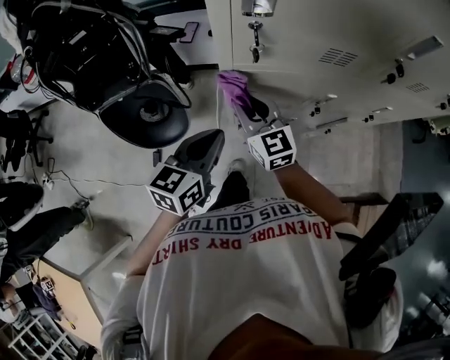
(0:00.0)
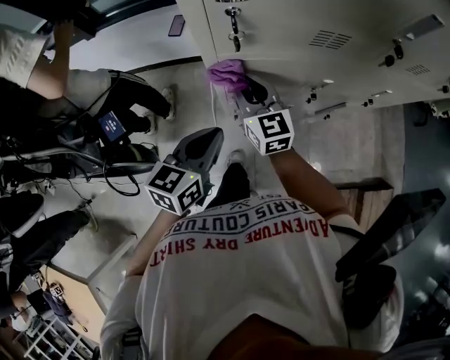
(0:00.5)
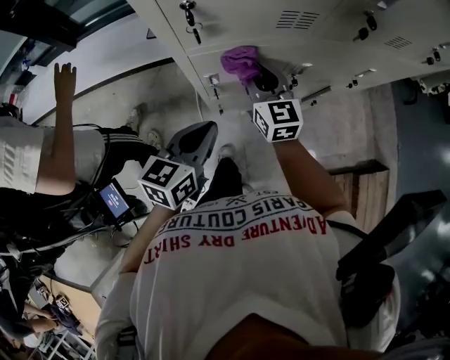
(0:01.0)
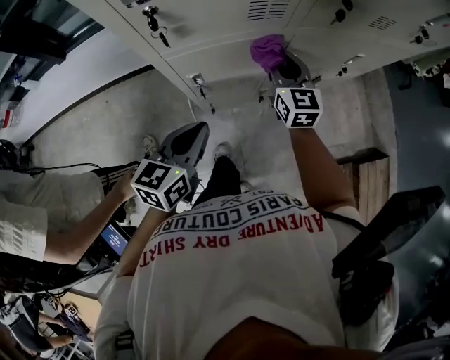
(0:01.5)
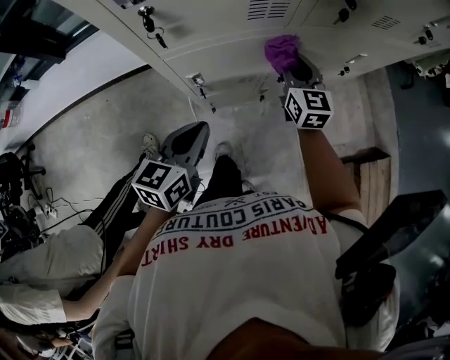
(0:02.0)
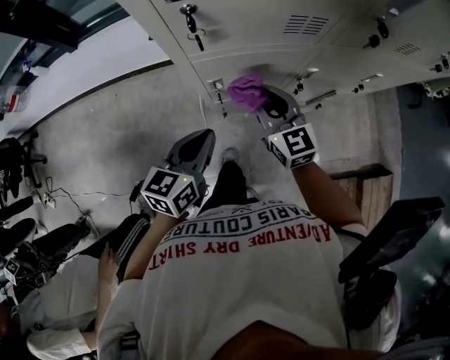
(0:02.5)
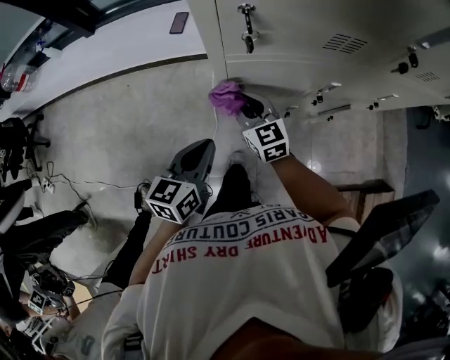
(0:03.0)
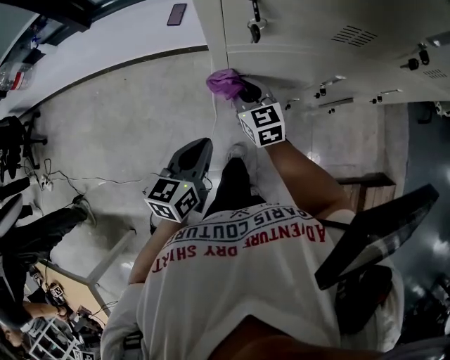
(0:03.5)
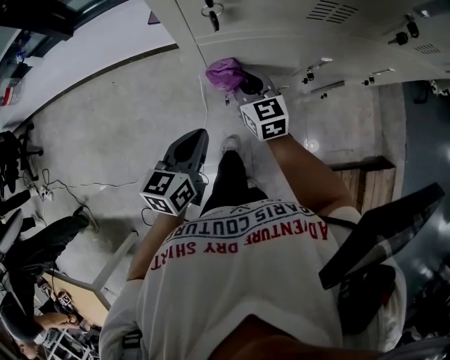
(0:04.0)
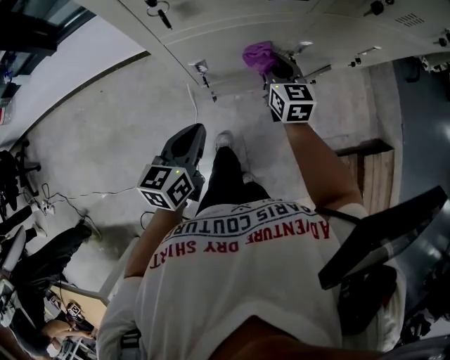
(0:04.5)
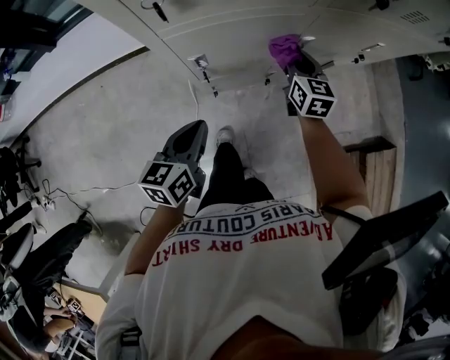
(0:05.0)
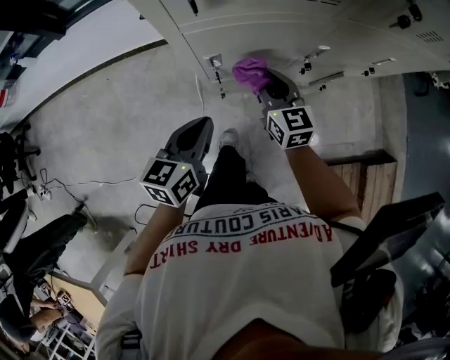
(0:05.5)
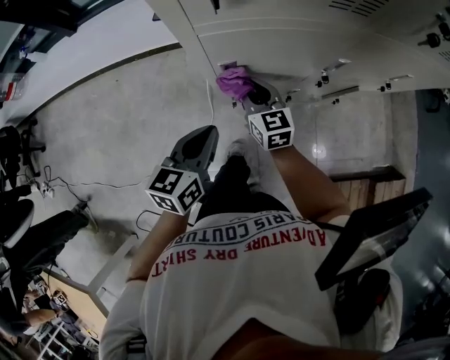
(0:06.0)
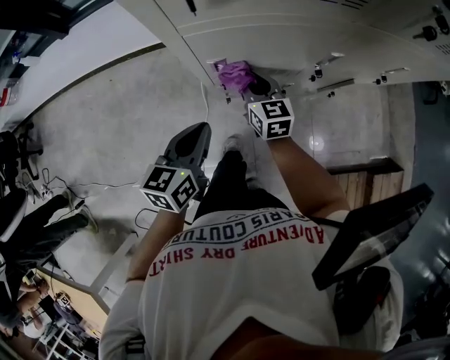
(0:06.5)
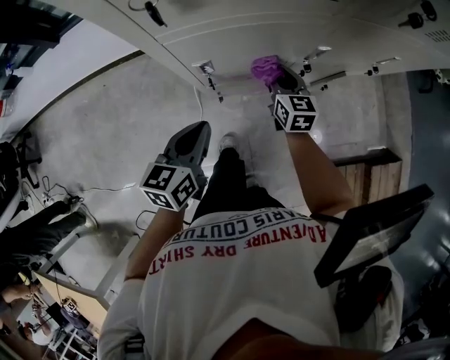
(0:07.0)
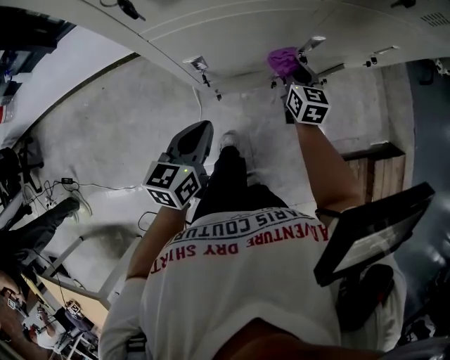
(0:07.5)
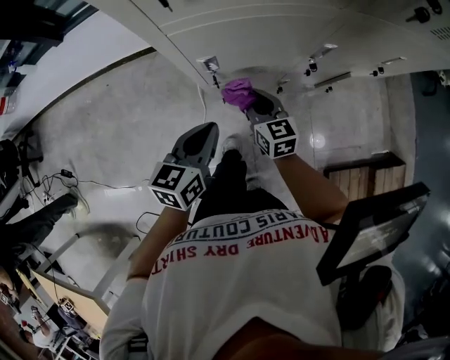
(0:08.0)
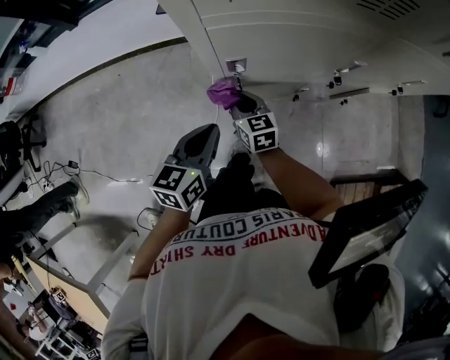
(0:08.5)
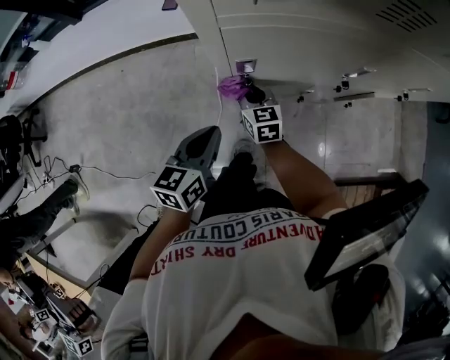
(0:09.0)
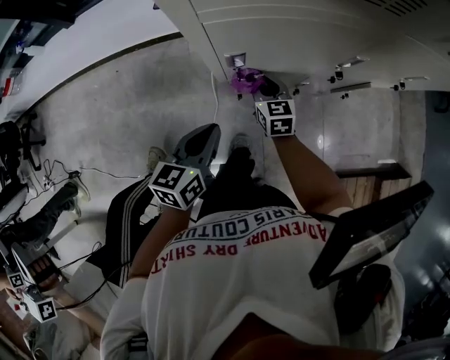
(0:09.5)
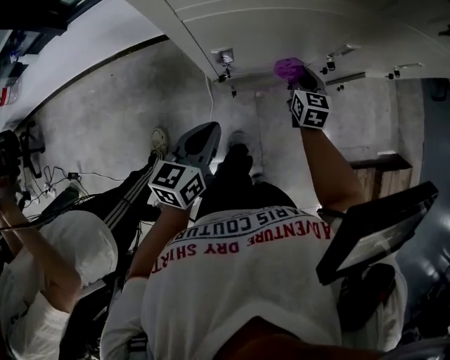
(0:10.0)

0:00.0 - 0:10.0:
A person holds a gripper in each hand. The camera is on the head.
0:00.0 - 0:02.0: The left gripper goes some 10 cm to the right and downward; the right gripper goes about 25 cm to the right, and swivels some 30 degrees.
0:02.0 - 0:04.0: The right gripper travels to the left and downward by about 25 cm, and rotates roughly 20 degrees. The left gripper is displaced to the left and downward by some 10 cm.
0:04.0 - 0:06.0: The right gripper travels downward by about 10 cm, and travels to the right and back again, about 20 cm each way. Meanwhile the left gripper changes place by approximately 5 cm.
0:06.0 - 0:08.0: The right gripper moves roughly 20 cm to the right and comes back.
0:08.0 - 0:10.0: The right gripper is displaced to the right, forward and downward by some 15 cm, and changes its angle by roughly 20 degrees.

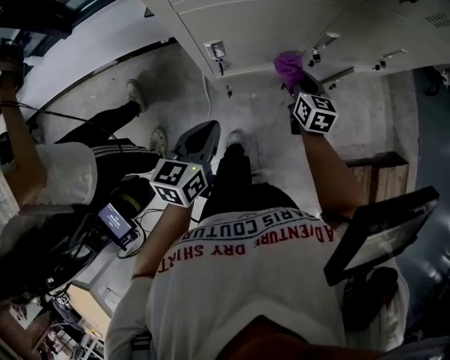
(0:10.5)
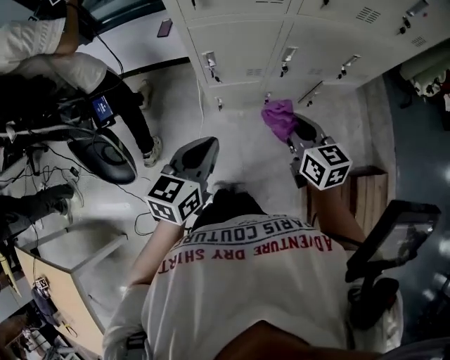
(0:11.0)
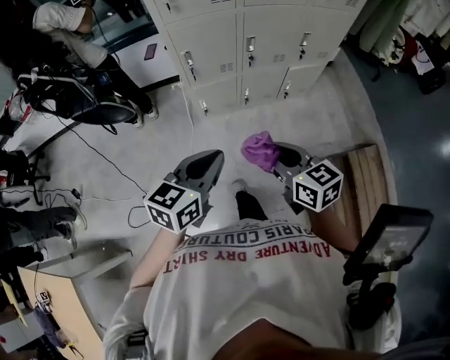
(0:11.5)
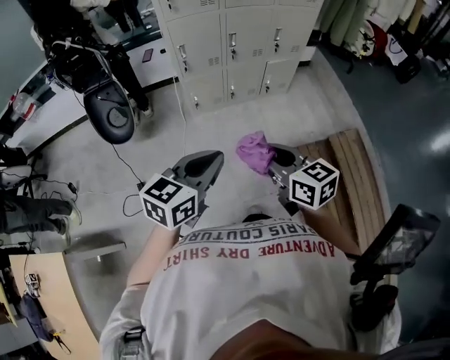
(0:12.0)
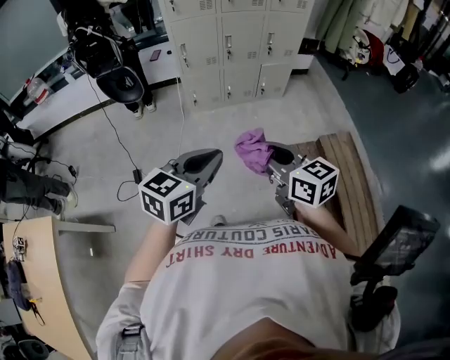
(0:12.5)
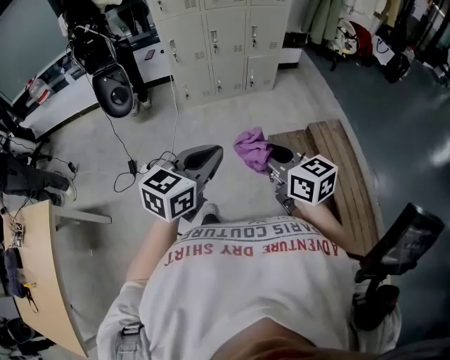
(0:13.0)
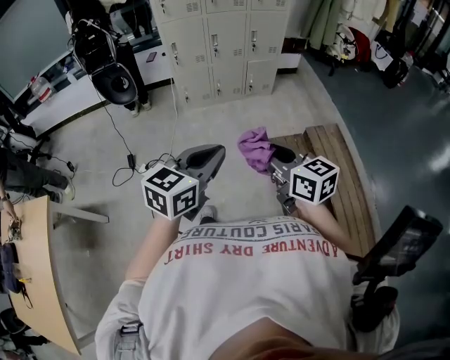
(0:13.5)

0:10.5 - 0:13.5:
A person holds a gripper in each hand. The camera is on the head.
0:10.5 - 0:12.0: The two grippers travel together, backward, approximately 60 cm. The two grippers go about 35 cm upward. The right gripper rotates roughly 30 degrees. The left gripper turns by about 20 degrees.
0:12.0 - 0:13.5: The two grippers go some 35 cm backward and to the right.

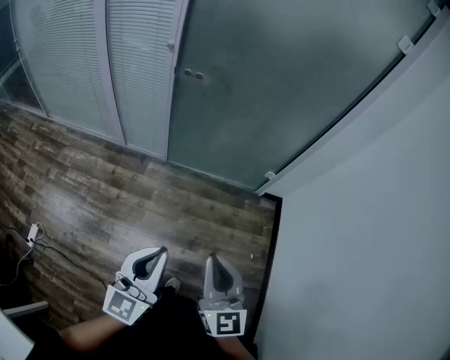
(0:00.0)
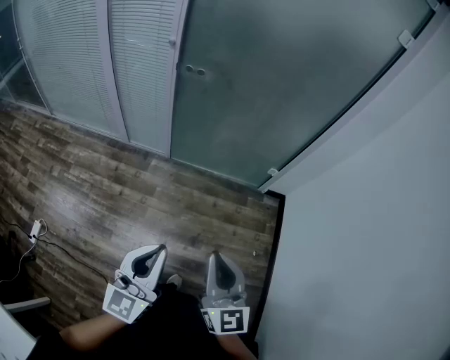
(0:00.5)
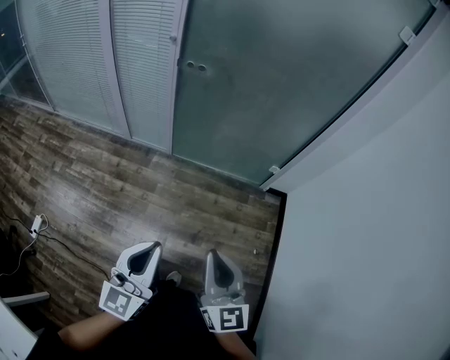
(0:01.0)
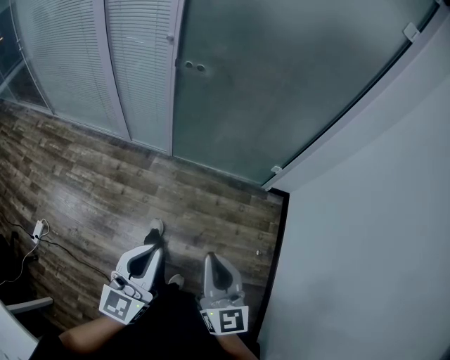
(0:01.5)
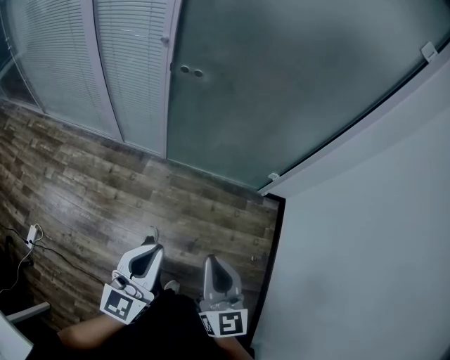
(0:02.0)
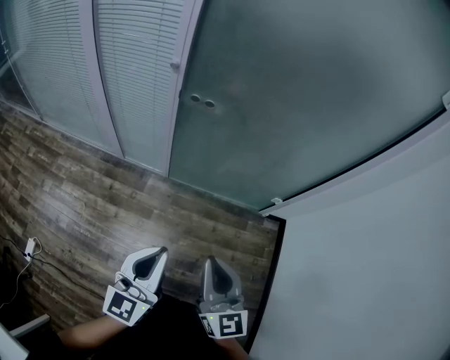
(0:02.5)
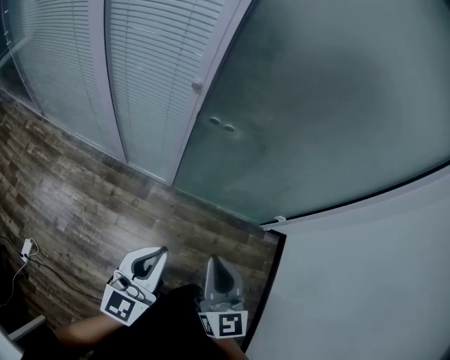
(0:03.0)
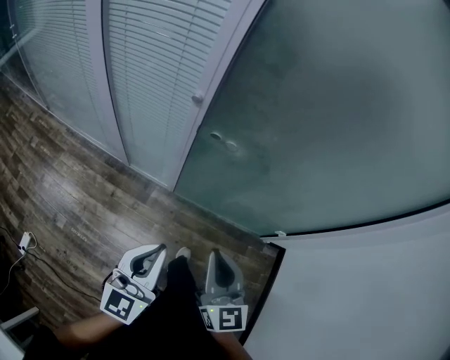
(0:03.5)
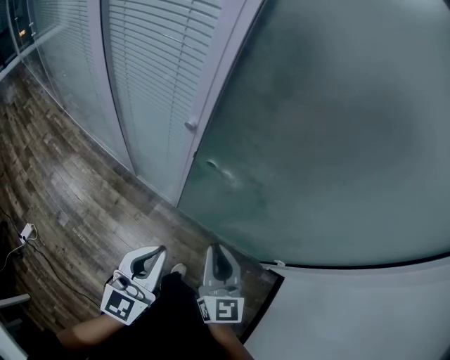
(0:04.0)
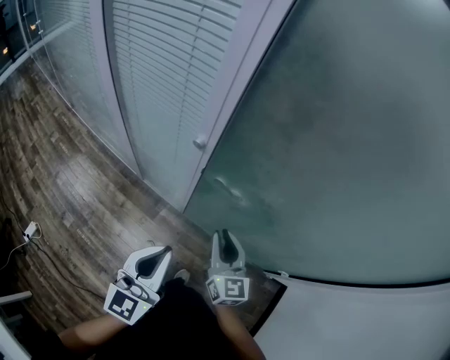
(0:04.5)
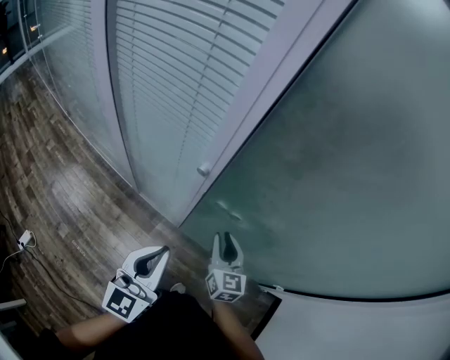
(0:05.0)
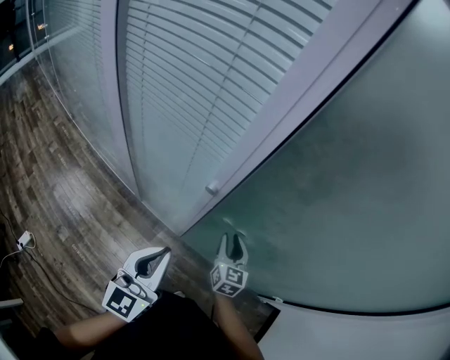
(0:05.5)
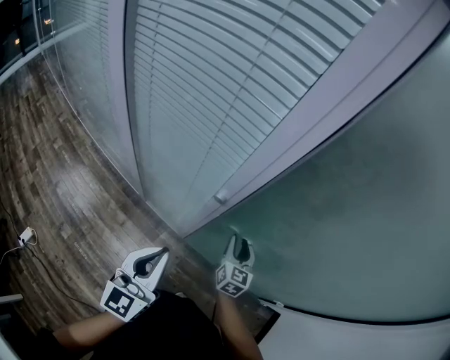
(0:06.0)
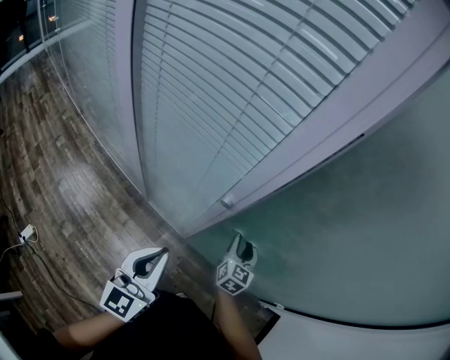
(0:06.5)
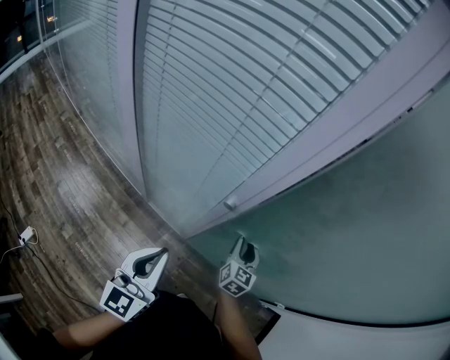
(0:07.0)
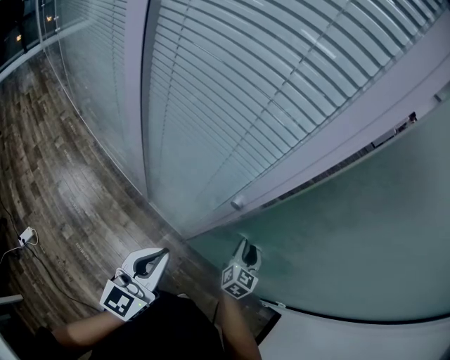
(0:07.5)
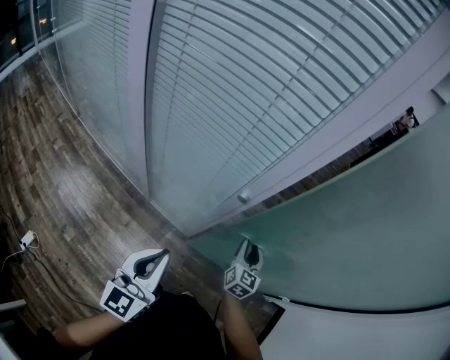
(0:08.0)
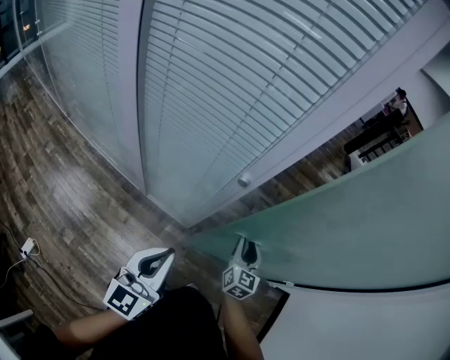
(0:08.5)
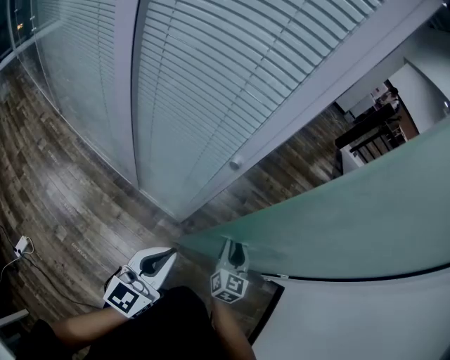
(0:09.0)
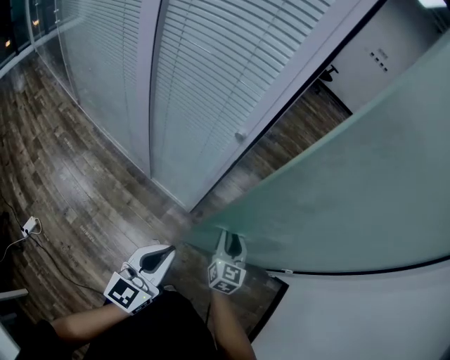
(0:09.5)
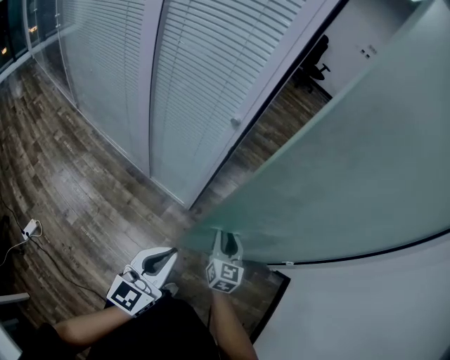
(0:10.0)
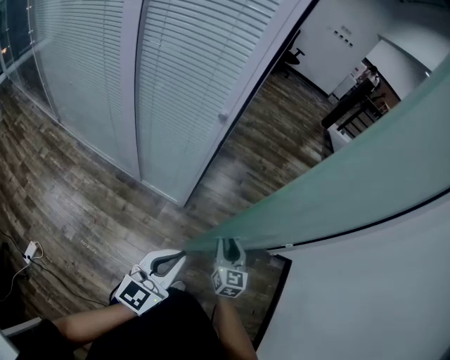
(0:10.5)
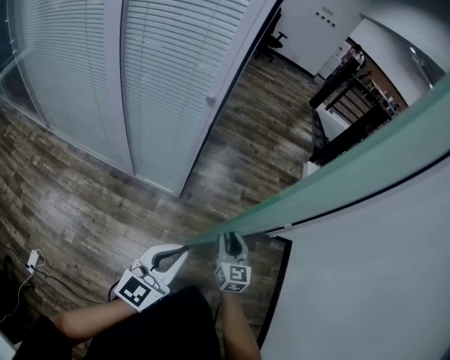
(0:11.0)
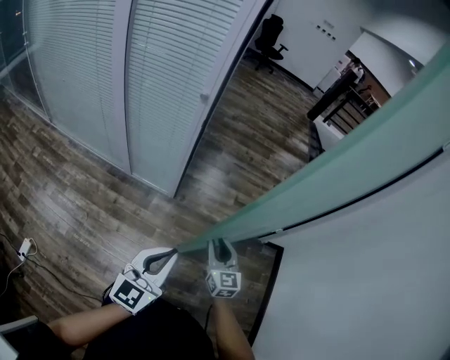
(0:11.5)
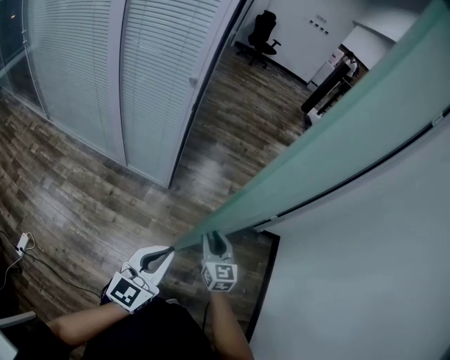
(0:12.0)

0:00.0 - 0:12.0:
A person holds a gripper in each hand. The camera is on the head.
0:00.0 - 0:02.0: Both grippers move forward, about 10 cm.
0:02.0 - 0:04.0: The grippers both shift forward by some 40 cm.
0:04.0 - 0:06.0: The right gripper heads forward and downward, covering some 30 cm, and opens up. The left gripper goes about 15 cm forward and to the left.
0:06.0 - 0:08.0: The left gripper moves roughly 5 cm.
0:08.0 - 0:10.0: The right gripper goes approximately 25 cm backward. Meanwhile the left gripper is displaced backward and to the right by approximately 25 cm.
0:10.0 - 0:12.0: The grippers both shift backward and to the right by some 15 cm.

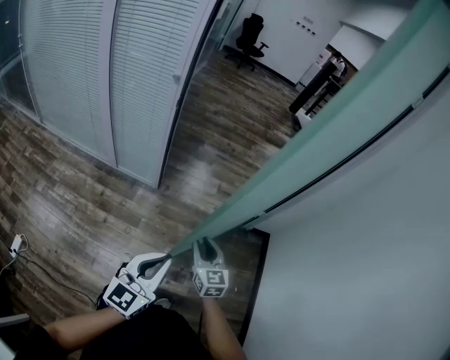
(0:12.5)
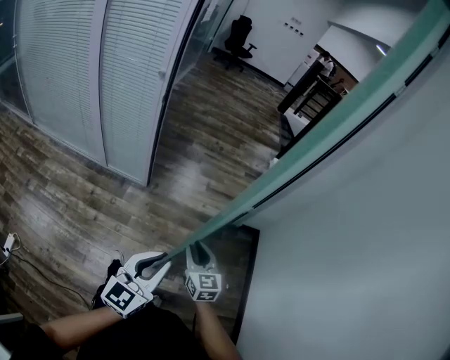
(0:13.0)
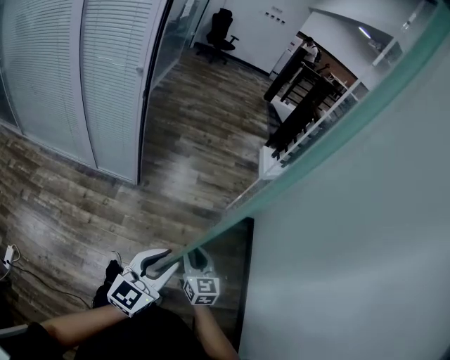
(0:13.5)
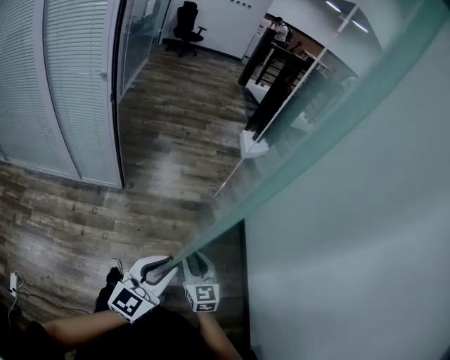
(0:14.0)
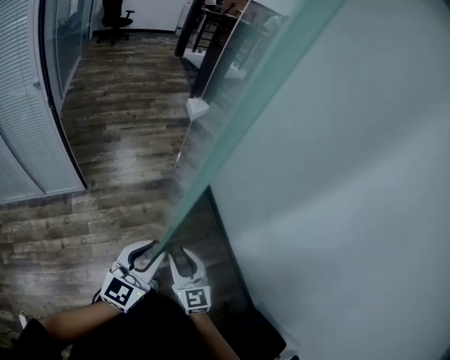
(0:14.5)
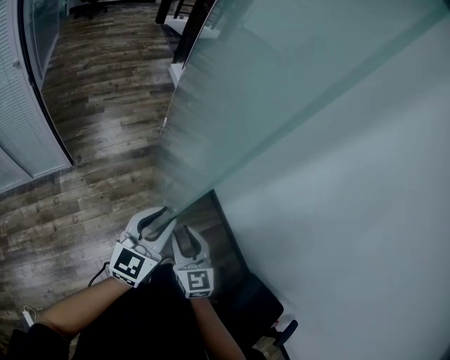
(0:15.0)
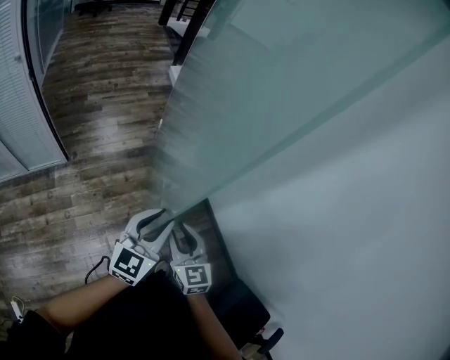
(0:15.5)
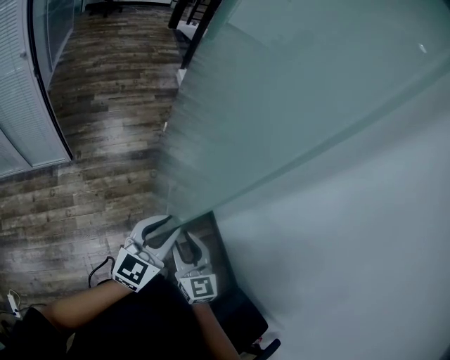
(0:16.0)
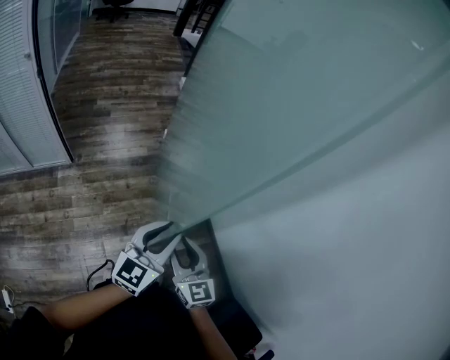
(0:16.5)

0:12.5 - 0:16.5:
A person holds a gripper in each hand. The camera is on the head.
0:12.5 - 0:14.5: The right gripper moves some 25 cm, and swivels about 20 degrees. Meanwhile the left gripper shifts by about 20 cm, swivels some 30 degrees, and opens its fingers.
0:14.5 - 0:16.5: The two grippers go approximately 10 cm to the right.
